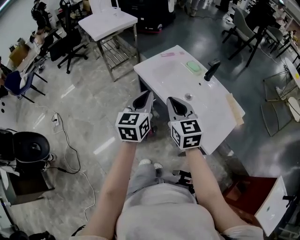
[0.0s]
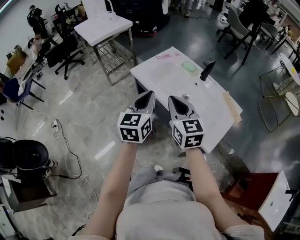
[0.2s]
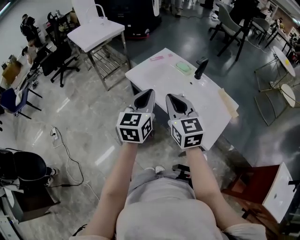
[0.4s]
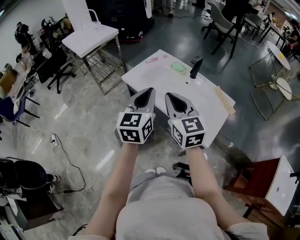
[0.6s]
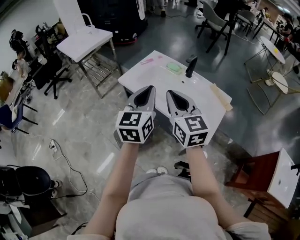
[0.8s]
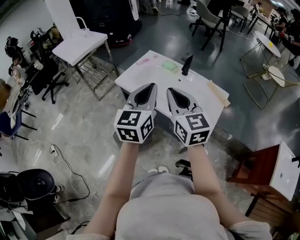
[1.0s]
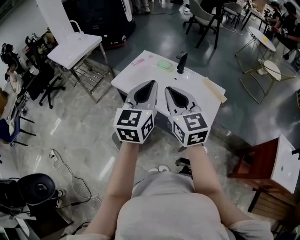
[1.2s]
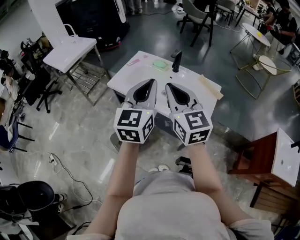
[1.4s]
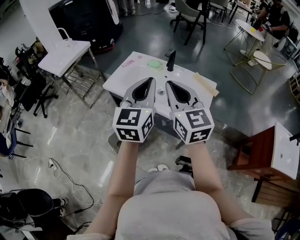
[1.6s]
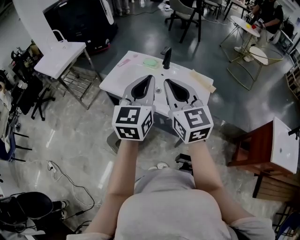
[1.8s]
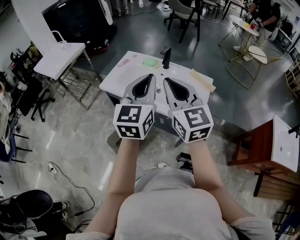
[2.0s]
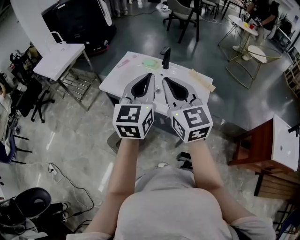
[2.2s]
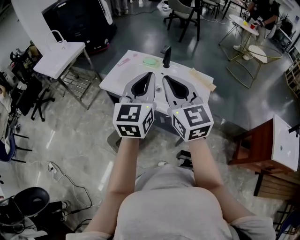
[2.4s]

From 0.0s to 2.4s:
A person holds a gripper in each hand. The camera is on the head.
From 0.0s to 1.2s: The grippers both shift upward and to the right by roughly 15 cm. The left gripper turns by some 20 degrees.
From 1.2s to 2.4s: The right gripper changes place by about 5 cm.

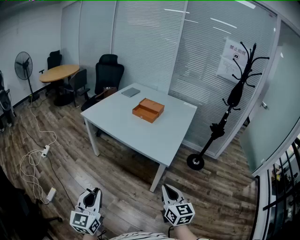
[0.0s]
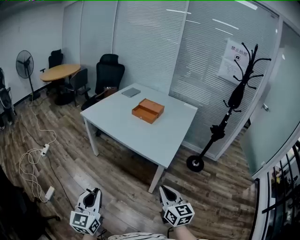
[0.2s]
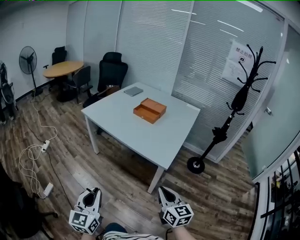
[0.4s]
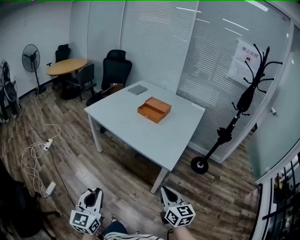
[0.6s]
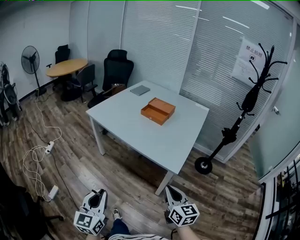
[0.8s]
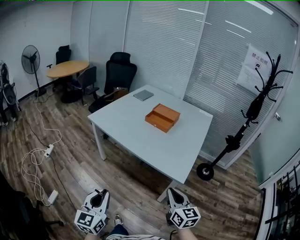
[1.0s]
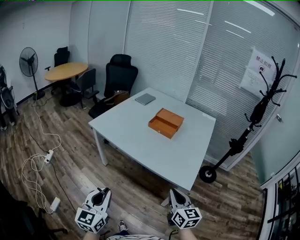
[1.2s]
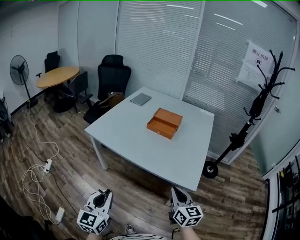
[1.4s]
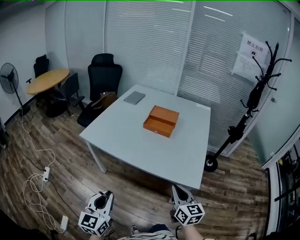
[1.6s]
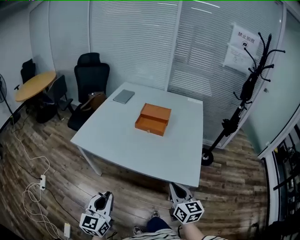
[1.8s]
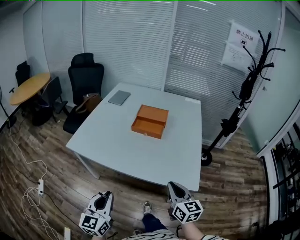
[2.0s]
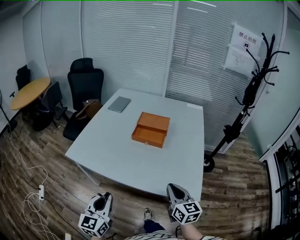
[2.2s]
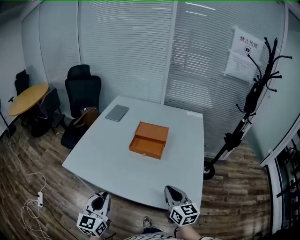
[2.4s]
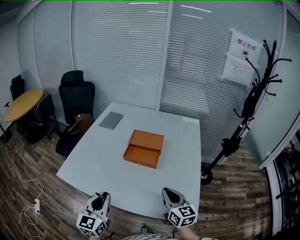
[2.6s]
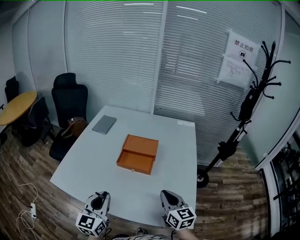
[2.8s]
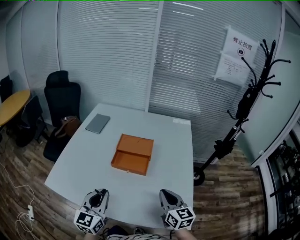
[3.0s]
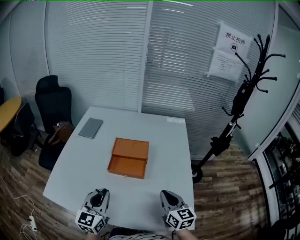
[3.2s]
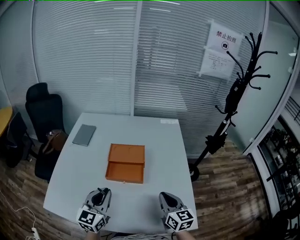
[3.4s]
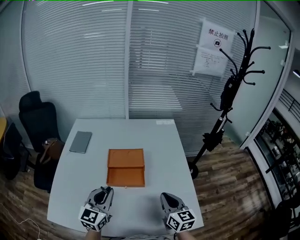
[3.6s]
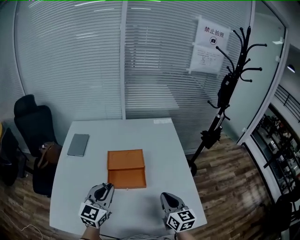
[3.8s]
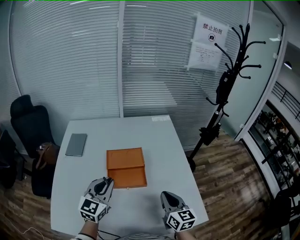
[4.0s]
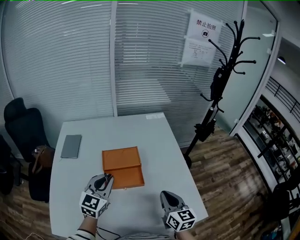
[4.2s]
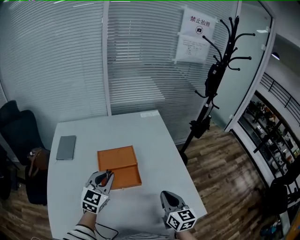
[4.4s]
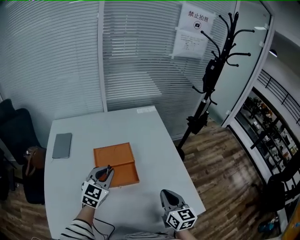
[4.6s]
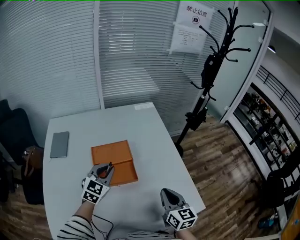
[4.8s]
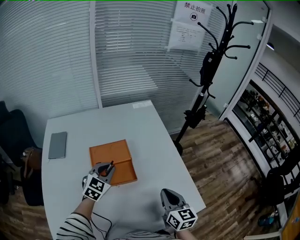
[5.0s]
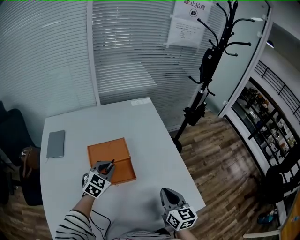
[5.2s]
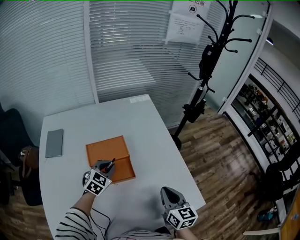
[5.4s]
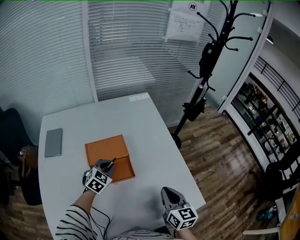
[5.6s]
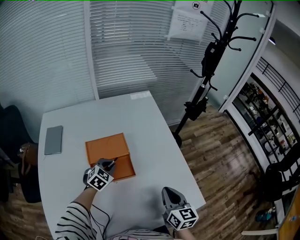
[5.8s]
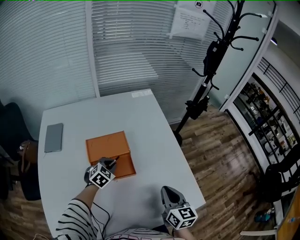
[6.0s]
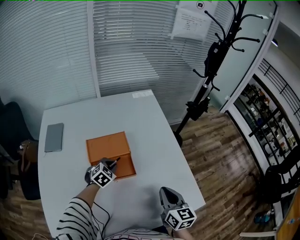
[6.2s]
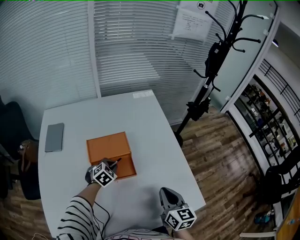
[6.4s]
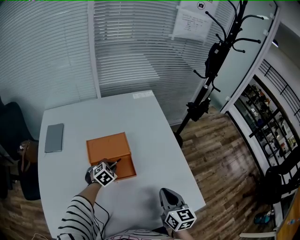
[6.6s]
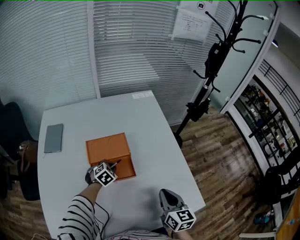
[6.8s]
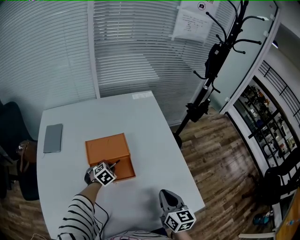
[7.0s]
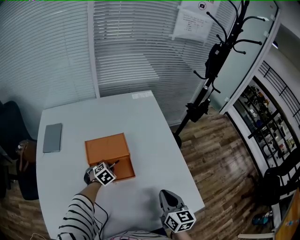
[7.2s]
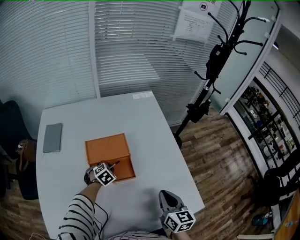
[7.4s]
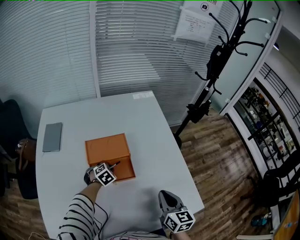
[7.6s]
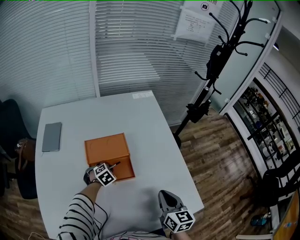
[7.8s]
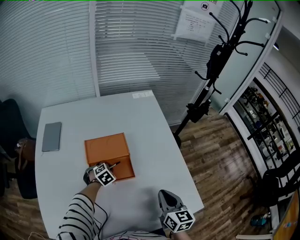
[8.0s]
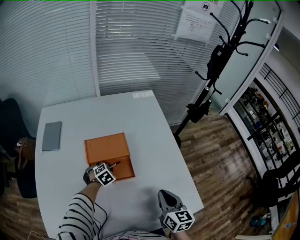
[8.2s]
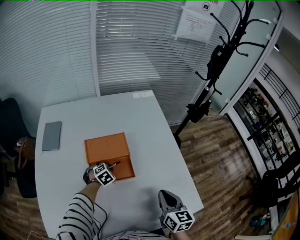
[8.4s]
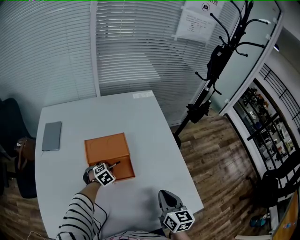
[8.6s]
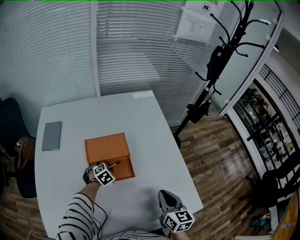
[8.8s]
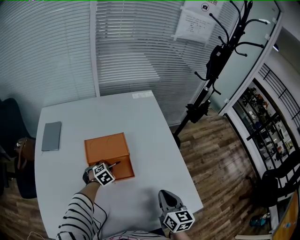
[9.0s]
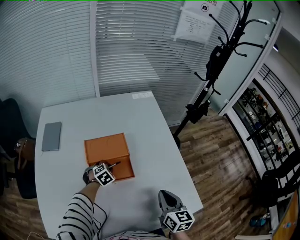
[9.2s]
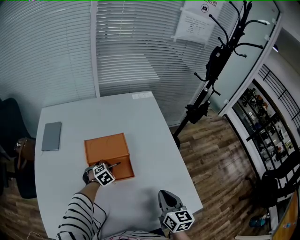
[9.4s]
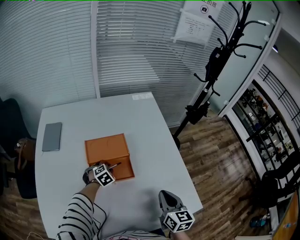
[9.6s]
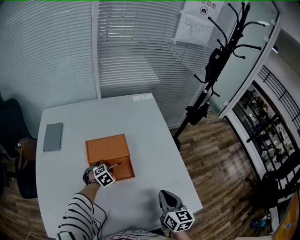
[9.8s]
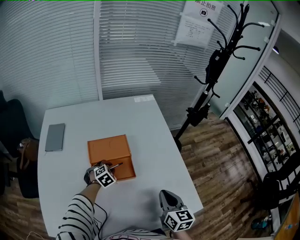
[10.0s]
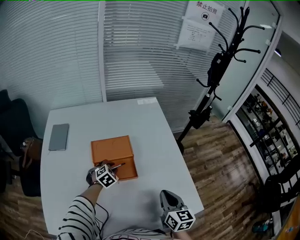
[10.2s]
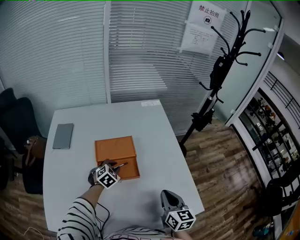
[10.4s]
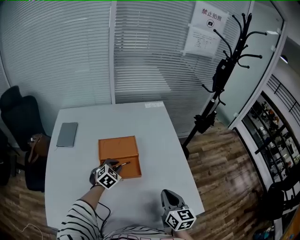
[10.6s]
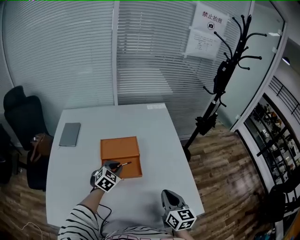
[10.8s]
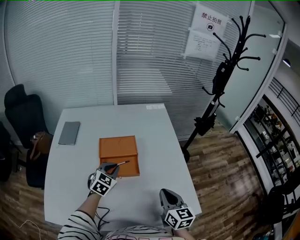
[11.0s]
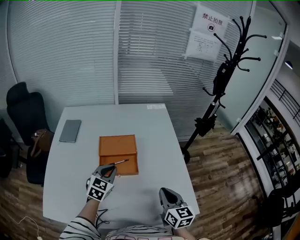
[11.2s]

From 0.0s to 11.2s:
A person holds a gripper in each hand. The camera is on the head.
From 0.0s to 1.6s: The left gripper goes roughly 30 cm forward. The right gripper heads forward and to the left, covering roughly 30 cm.
From 1.6s to 3.2s: The grippers both shift forward by approximately 40 cm.
From 3.2s to 4.8s: The right gripper rotates some 30 degrees, while the left gripper moves approximately 25 cm, and rotates approximately 40 degrees.
From 4.8s to 6.4s: The left gripper goes approximately 20 cm downward, and angles its fingers downward, by about 30 degrees.
From 6.4s to 8.0s: The left gripper moves downward, some 5 cm.
From 8.0s to 9.6s: Both grippers stay put.
From 9.6s to 11.2s: The left gripper goes some 20 cm upward and backward, and tilts its fingers roughly 40 degrees upward.

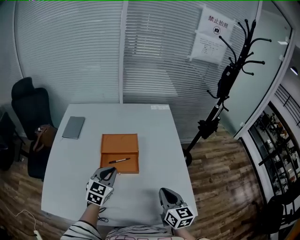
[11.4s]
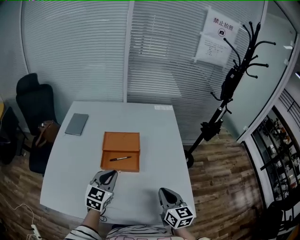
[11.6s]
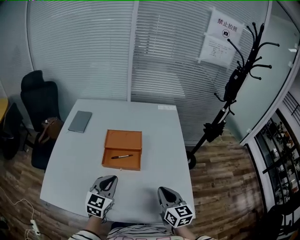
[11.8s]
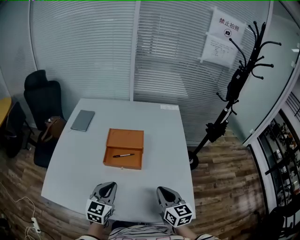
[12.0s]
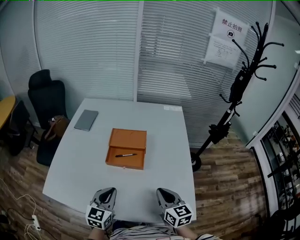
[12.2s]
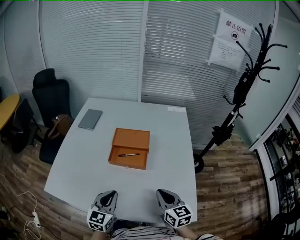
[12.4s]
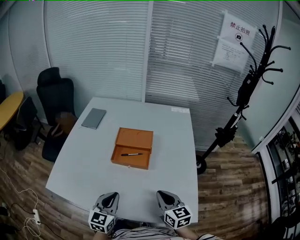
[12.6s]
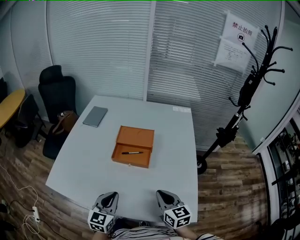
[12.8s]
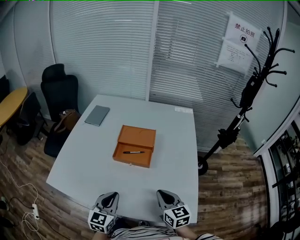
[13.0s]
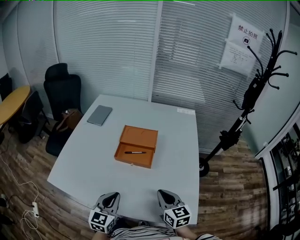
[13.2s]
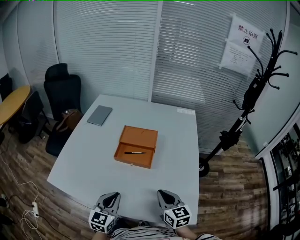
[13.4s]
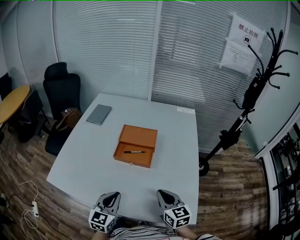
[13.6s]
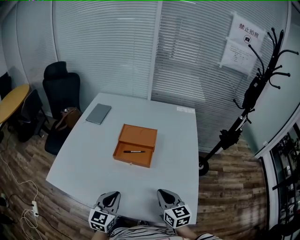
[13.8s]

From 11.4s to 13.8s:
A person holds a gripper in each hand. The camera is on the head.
From 11.4s to 12.6s: The left gripper moves backward, some 15 cm, and swivels some 20 degrees. The right gripper rotates about 20 degrees.
From 12.6s to 13.8s: There are only small adjustments of the grippers.

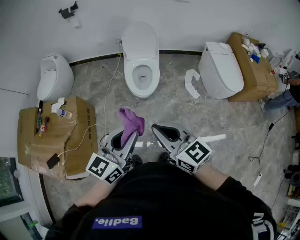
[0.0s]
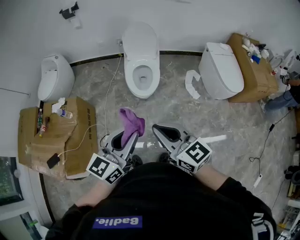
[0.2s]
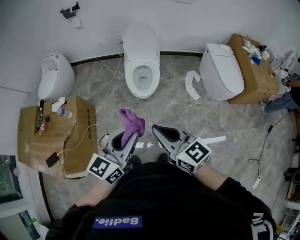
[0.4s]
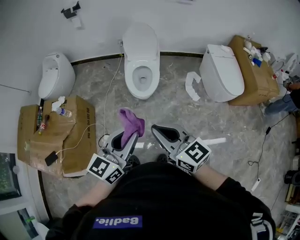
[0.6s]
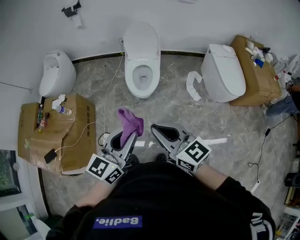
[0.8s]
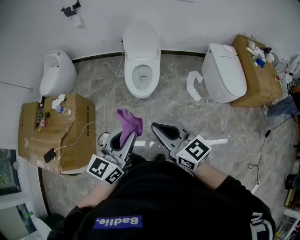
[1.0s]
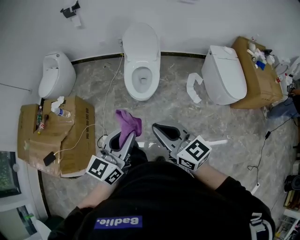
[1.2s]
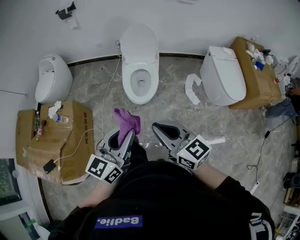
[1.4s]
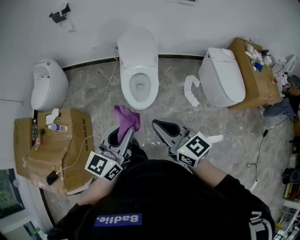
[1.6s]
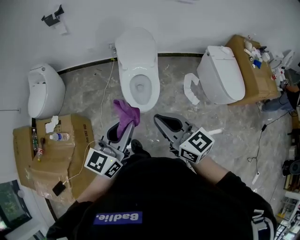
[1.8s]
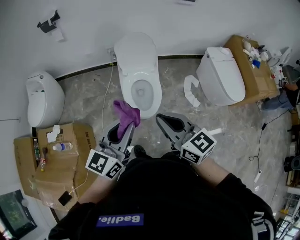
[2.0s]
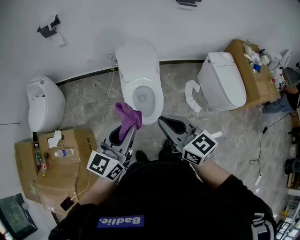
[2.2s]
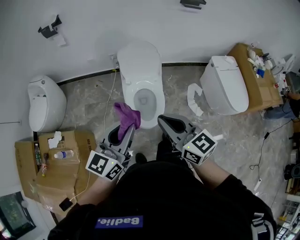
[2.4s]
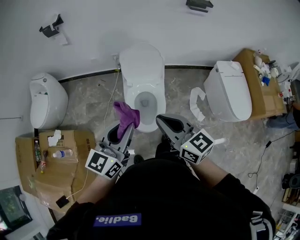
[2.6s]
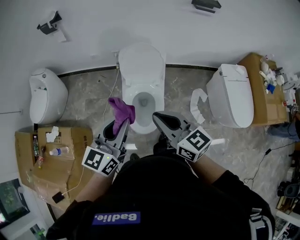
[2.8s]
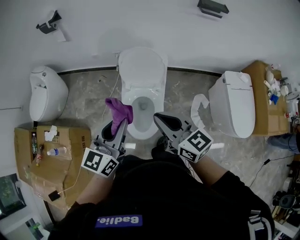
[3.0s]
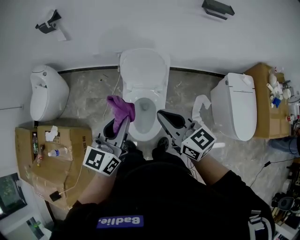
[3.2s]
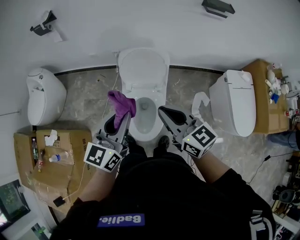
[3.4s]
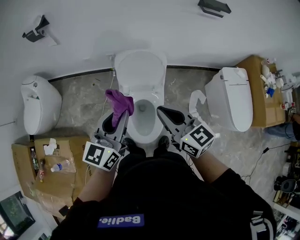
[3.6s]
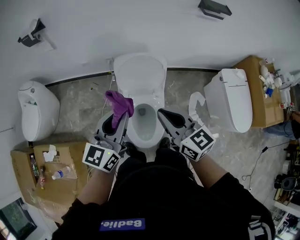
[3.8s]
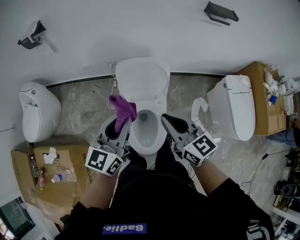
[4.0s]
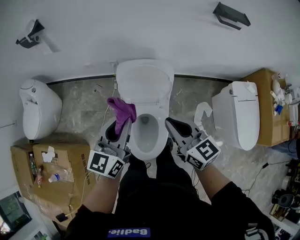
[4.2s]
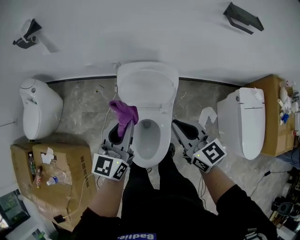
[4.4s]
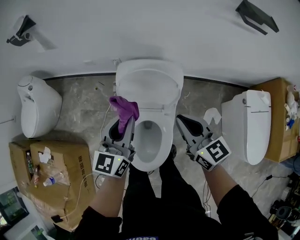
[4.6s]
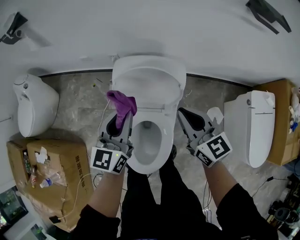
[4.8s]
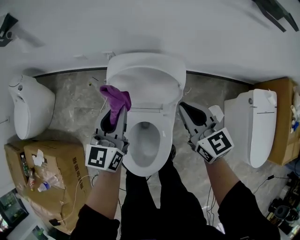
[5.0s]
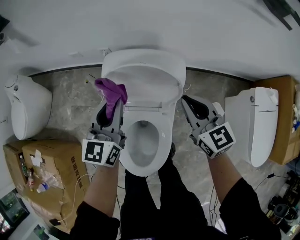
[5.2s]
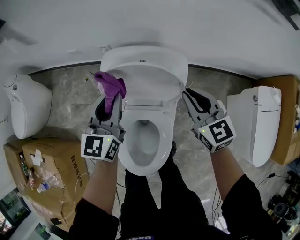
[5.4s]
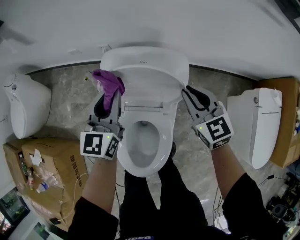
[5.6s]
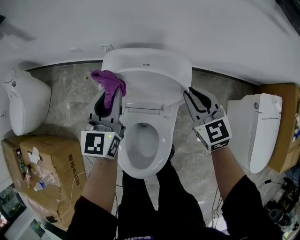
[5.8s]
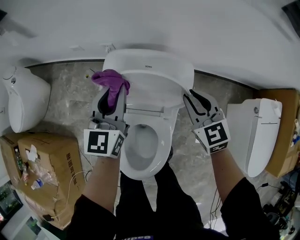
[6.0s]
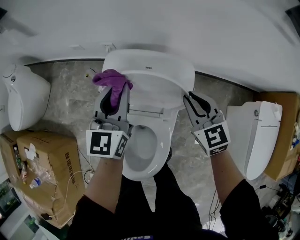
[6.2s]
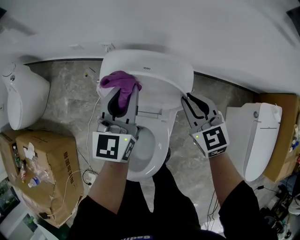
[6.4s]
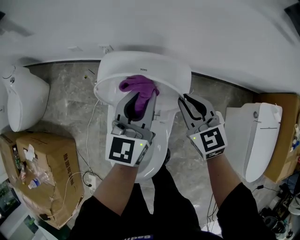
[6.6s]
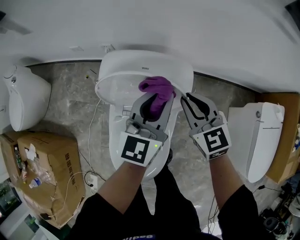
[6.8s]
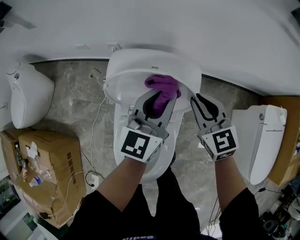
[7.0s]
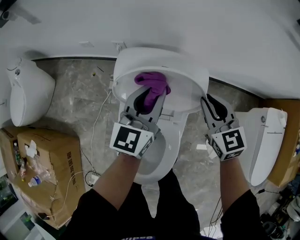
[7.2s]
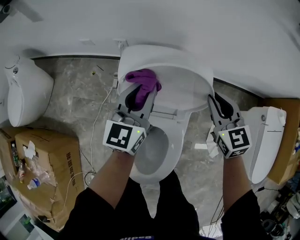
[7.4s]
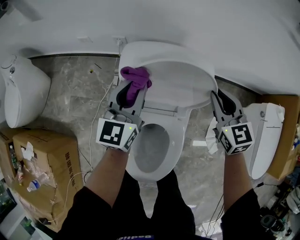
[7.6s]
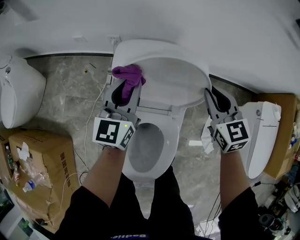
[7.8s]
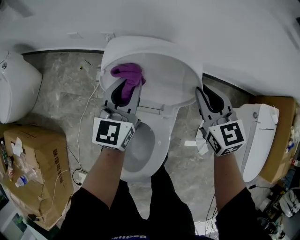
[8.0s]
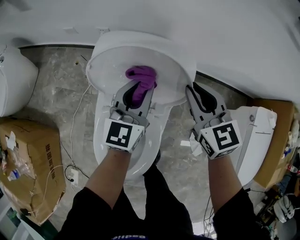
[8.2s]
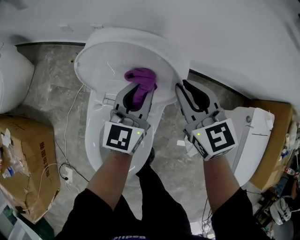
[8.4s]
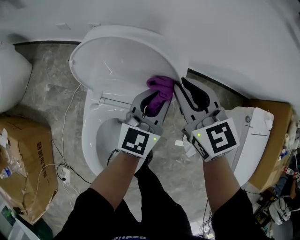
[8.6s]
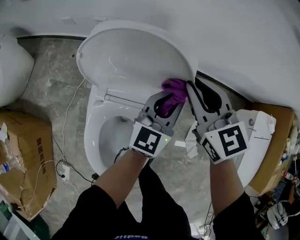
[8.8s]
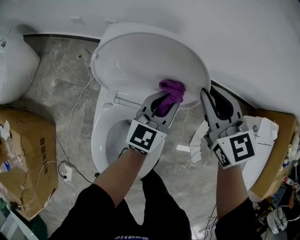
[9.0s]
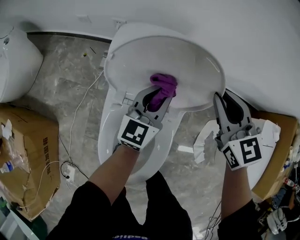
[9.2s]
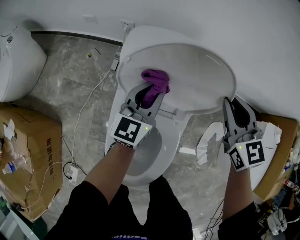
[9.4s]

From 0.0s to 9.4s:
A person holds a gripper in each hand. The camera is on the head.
From 0.0s to 1.6s: Both grippers travel together forward, roughly 15 cm.
From 1.6s to 3.2s: Both grippers move forward, about 35 cm.
From 3.2s to 4.8s: The grippers both shift forward and downward by some 30 cm.
From 4.8s to 6.2s: The left gripper moves forward and downward, some 15 cm. The right gripper heads downward and forward, covering roughly 15 cm, and changes its angle by some 20 degrees.
From 6.2s to 7.8s: The left gripper shifts approximately 5 cm downward, and reaches some 15 cm to the right, then returns.
From 7.8s to 9.4s: The left gripper heads downward, covering roughly 10 cm, and reaches some 25 cm to the right, then returns.
